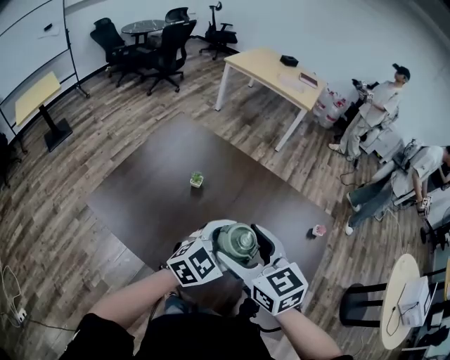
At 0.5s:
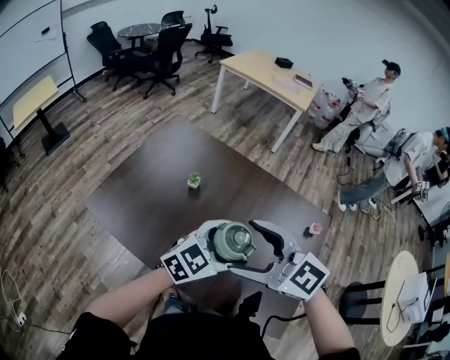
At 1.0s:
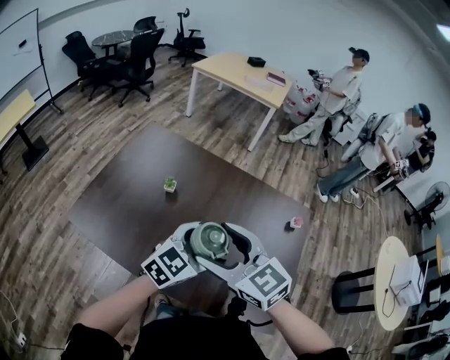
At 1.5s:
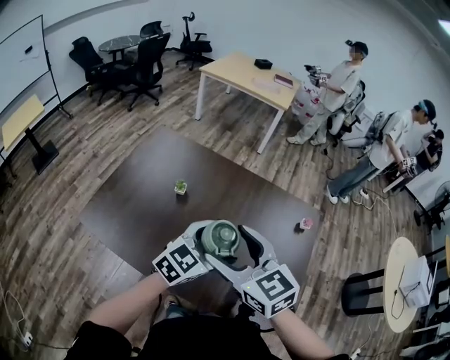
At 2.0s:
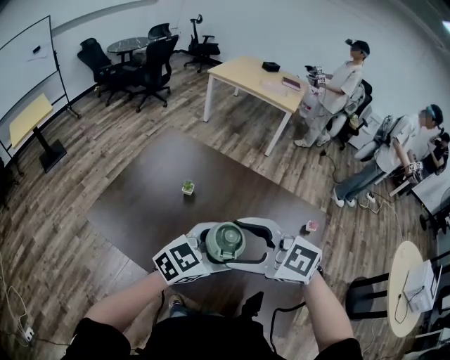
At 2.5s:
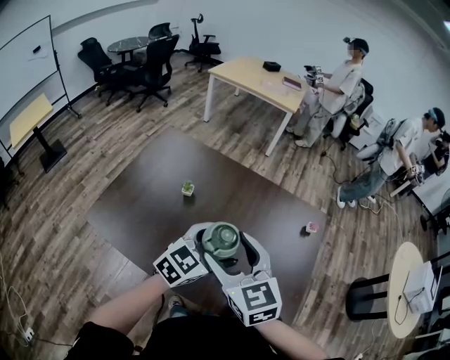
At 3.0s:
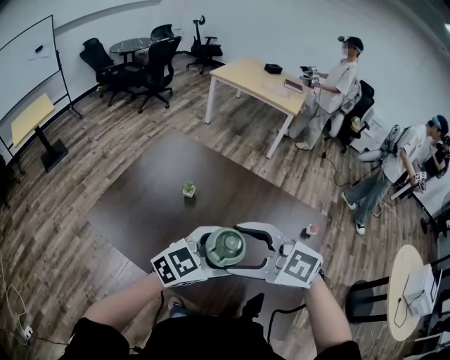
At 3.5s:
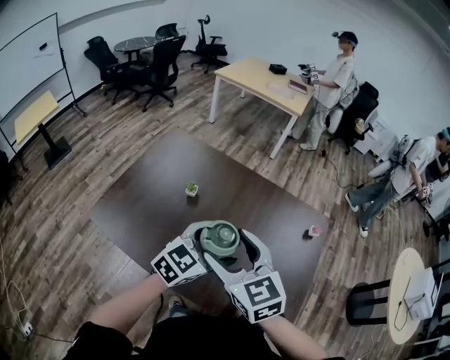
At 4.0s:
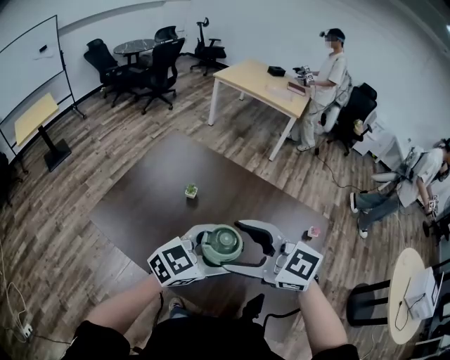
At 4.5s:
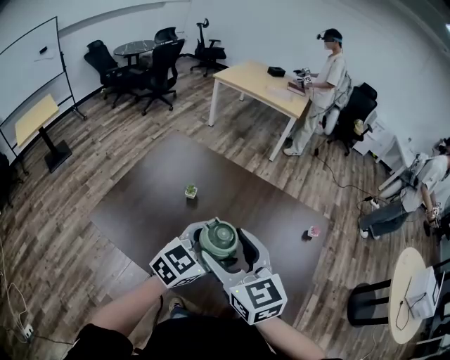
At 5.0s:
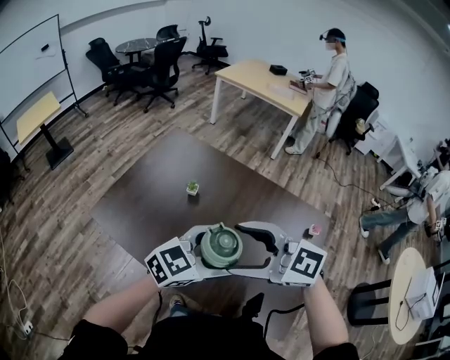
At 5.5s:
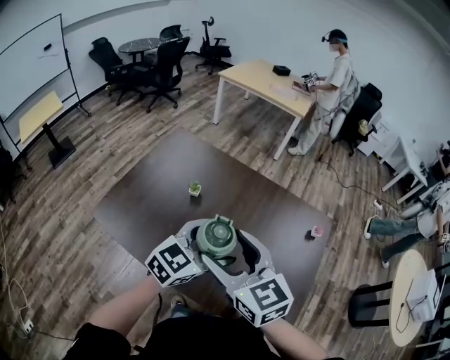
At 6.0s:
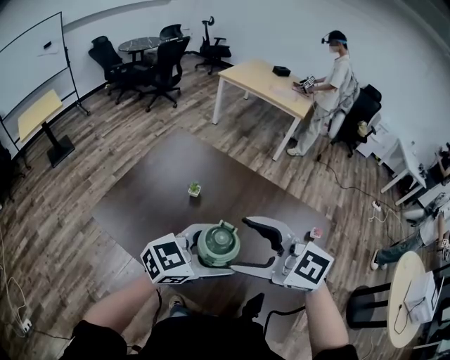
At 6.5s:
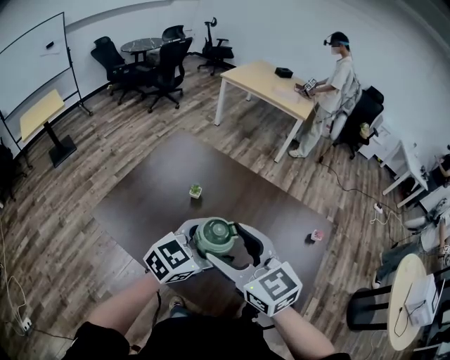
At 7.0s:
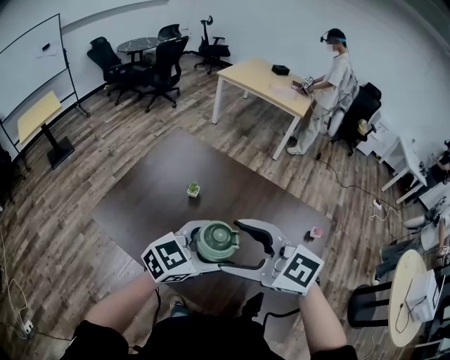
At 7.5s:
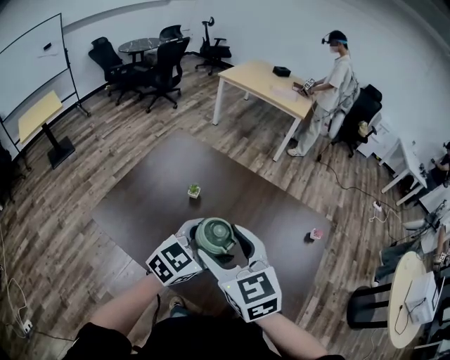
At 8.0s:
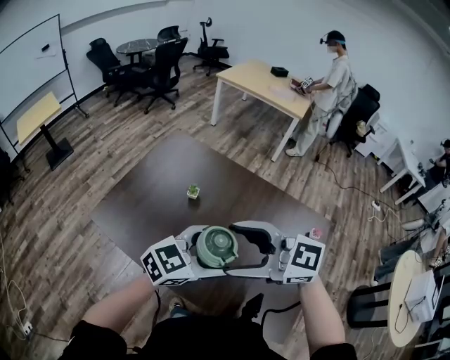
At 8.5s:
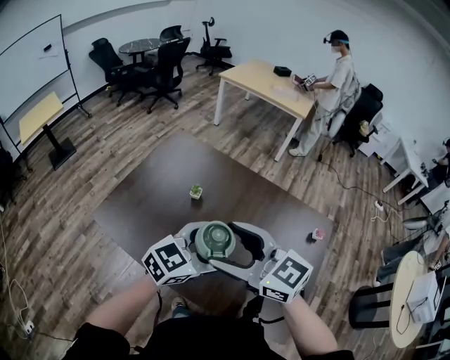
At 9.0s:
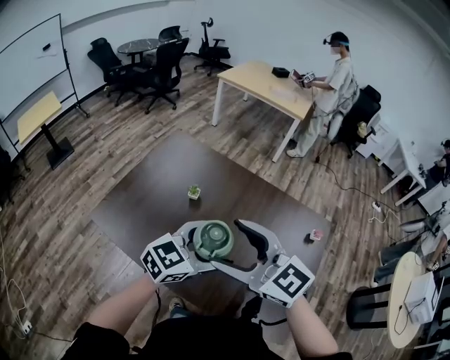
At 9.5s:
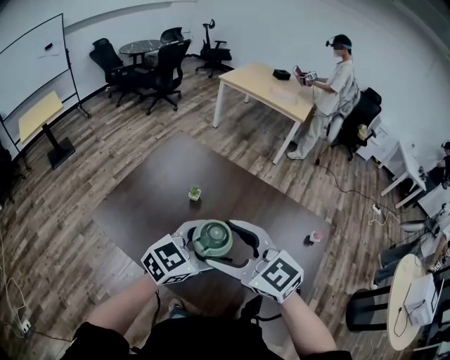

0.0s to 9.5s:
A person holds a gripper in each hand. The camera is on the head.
0.0s to 2.0s: The right gripper changes place by roughly 5 cm, and rotates approximately 40 degrees. The left gripper ends up approximately 5 cm from where it was.
4.0s to 5.5s: The right gripper changes its angle by approximately 30 degrees.
7.5s to 9.5s: The right gripper rotates some 30 degrees.

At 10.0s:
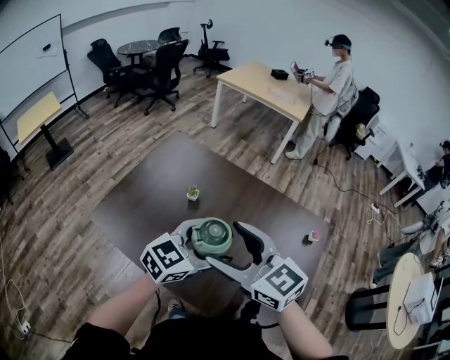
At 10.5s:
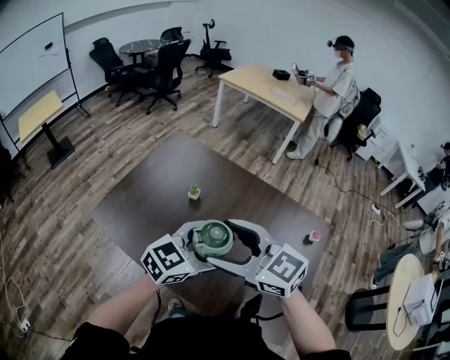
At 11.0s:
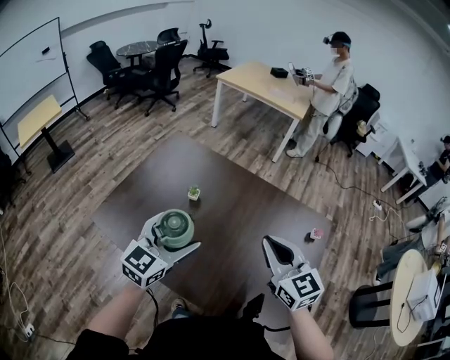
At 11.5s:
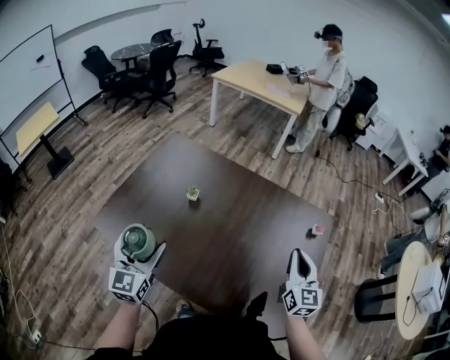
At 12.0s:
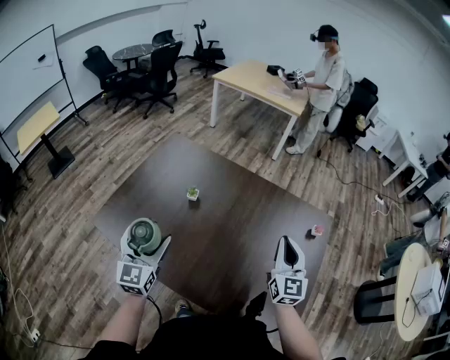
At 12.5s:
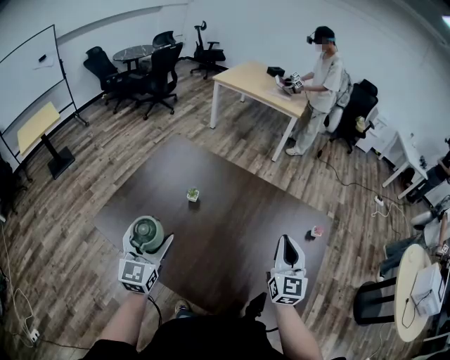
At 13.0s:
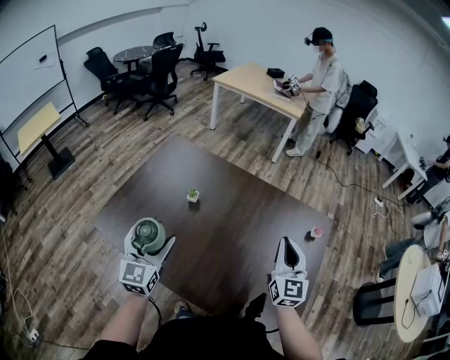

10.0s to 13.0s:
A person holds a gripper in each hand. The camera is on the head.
10.0s to 11.5s: The right gripper travels to the right and downward by roughly 30 cm, rotates some 50 degrees, and closes up, while the left gripper moves to the left, some 20 cm, and changes its angle by approximately 50 degrees.
11.5s to 13.0s: The right gripper ends up roughly 5 cm from where it was.

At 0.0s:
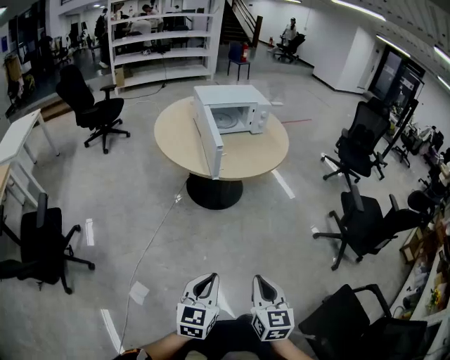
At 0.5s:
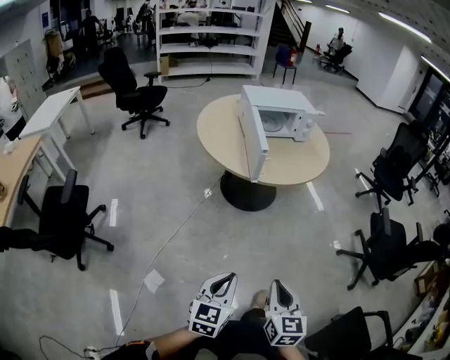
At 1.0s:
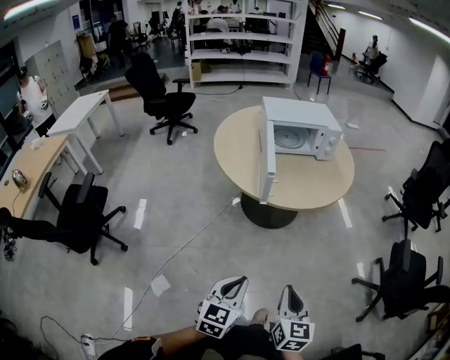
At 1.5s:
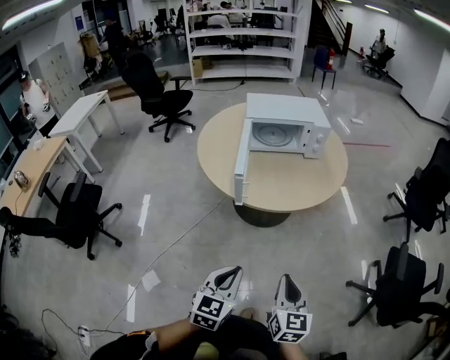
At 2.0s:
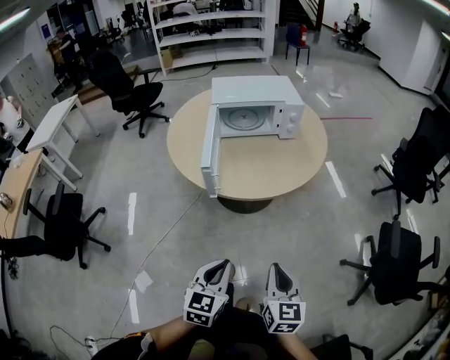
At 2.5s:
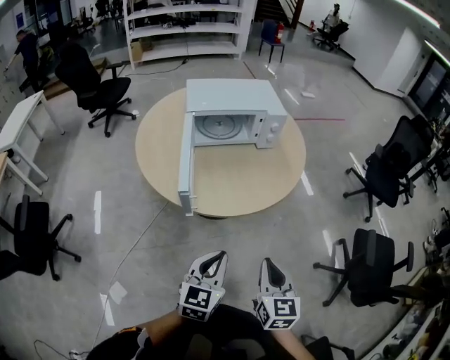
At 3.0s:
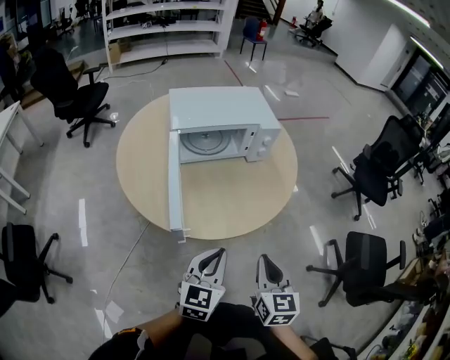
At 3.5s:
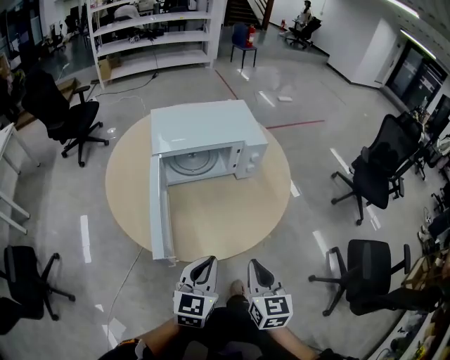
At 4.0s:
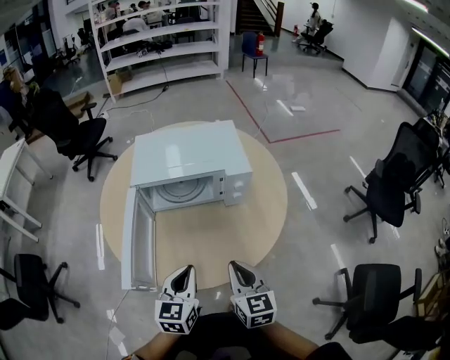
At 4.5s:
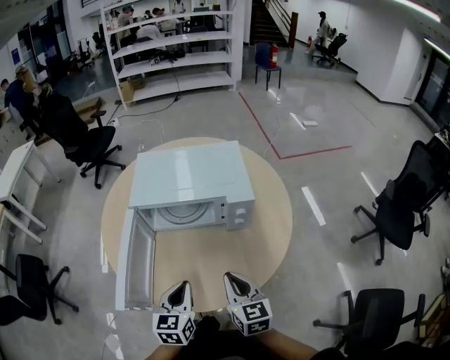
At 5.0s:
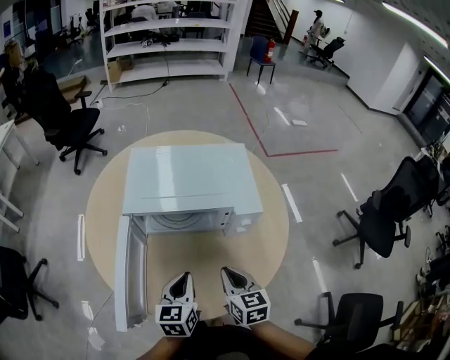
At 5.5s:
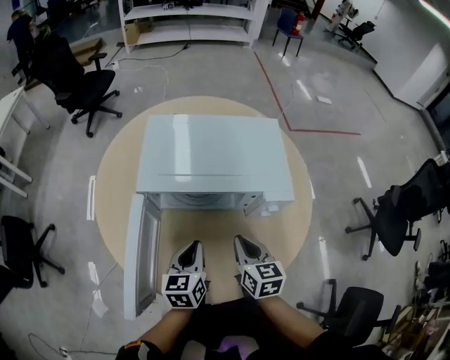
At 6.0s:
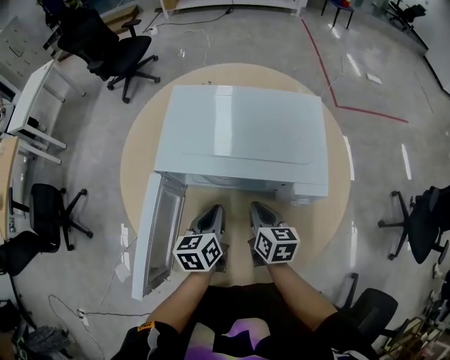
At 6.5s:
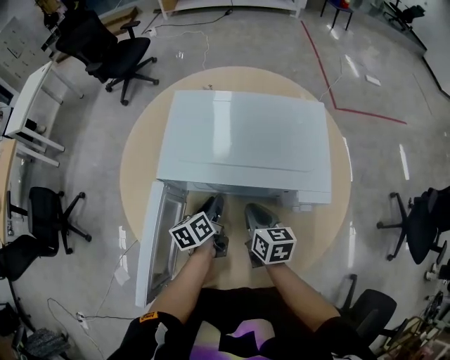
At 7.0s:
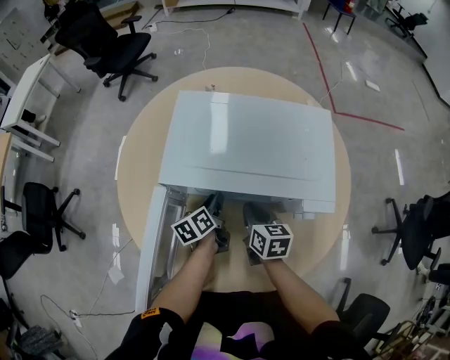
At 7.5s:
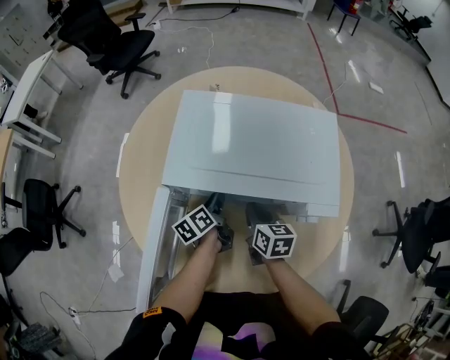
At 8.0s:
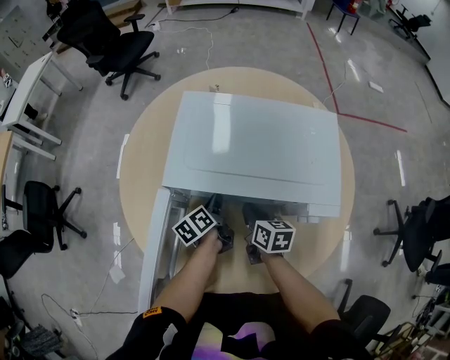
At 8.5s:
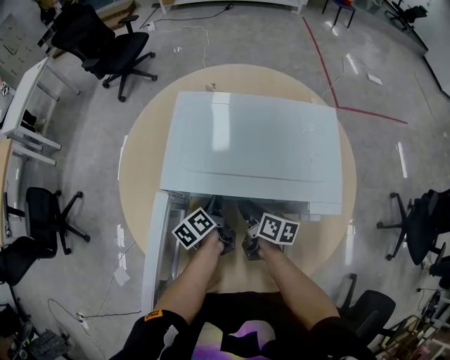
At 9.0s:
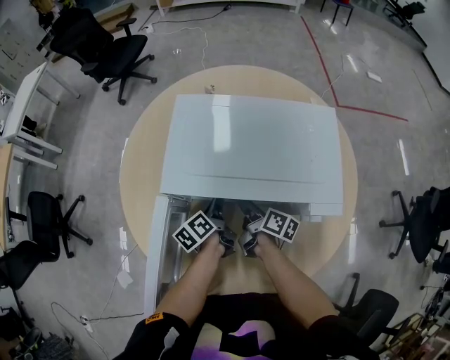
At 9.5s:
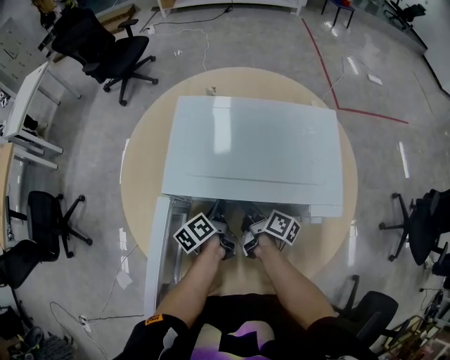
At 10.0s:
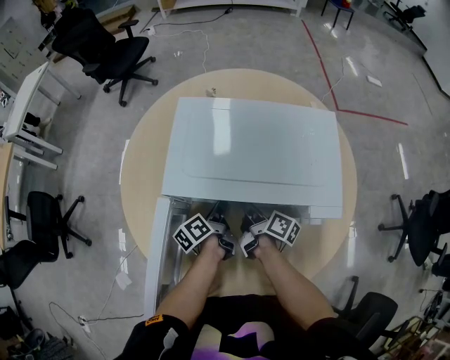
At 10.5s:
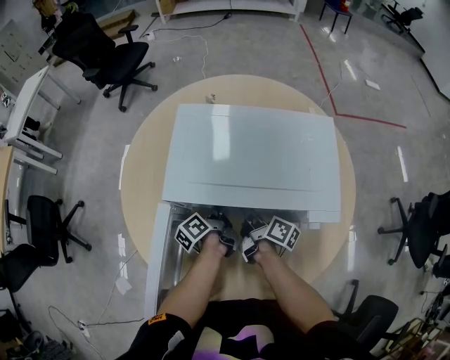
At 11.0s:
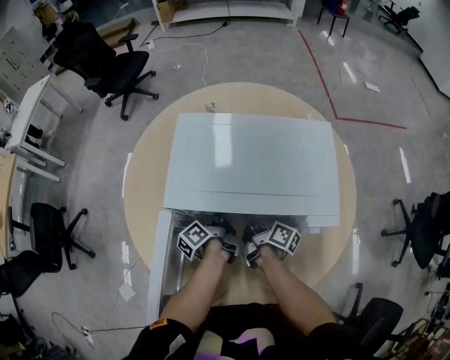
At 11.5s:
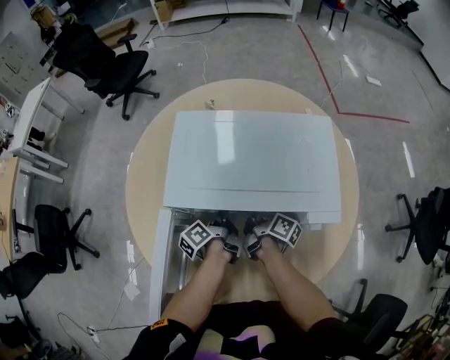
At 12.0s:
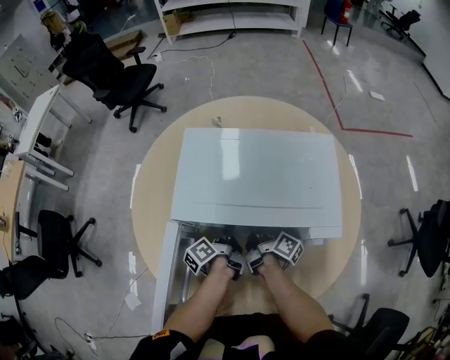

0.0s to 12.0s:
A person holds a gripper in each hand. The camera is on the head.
0.0s to 2.0s: Both grippers move forward and to the right, about 35 cm.
2.0s to 4.0s: The pair of grippers is taken forward, roughly 40 cm.
4.0s to 6.0s: The grippers both shift forward and downward by some 35 cm. The right gripper turns by roughly 30 degrees. Meanwhile the left gripper turns by approximately 30 degrees.
6.0s to 8.0s: The left gripper moves forward and downward, approximately 15 cm, and swivels some 30 degrees, while the right gripper moves forward and downward, some 5 cm.
8.0s to 10.0s: The right gripper rolls clockwise, seen from behind, by about 40 degrees.
10.0s to 12.0s: The grippers stay close to where they were, moving slightly.

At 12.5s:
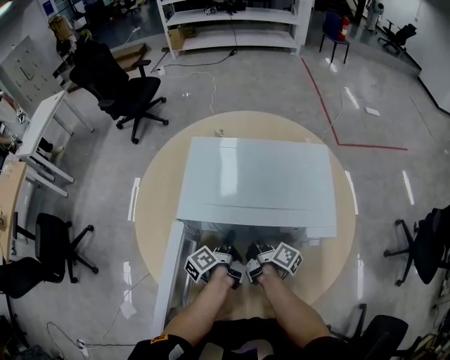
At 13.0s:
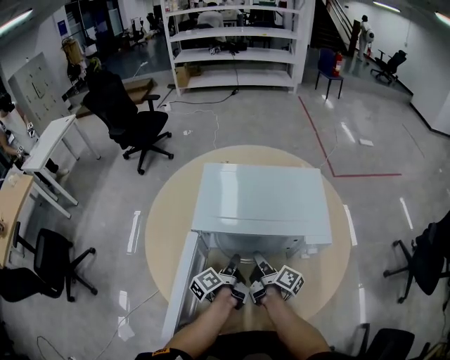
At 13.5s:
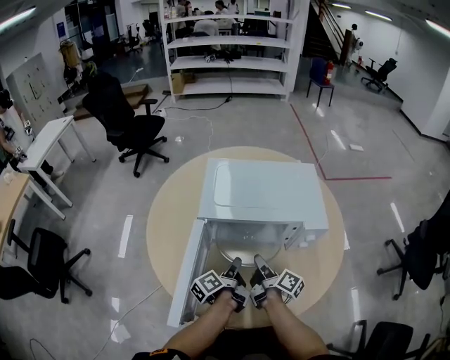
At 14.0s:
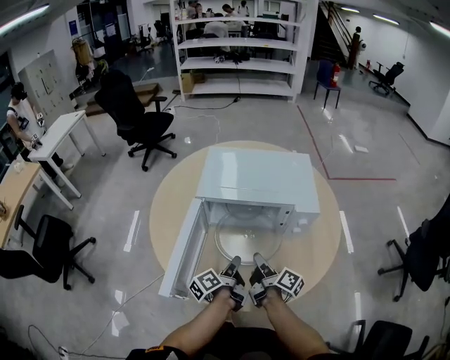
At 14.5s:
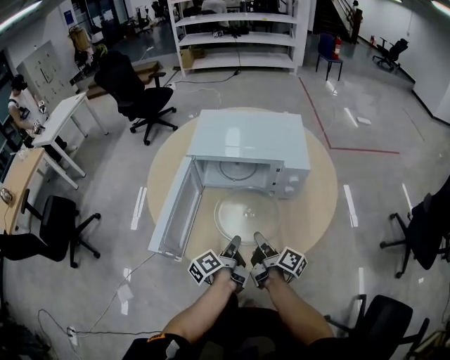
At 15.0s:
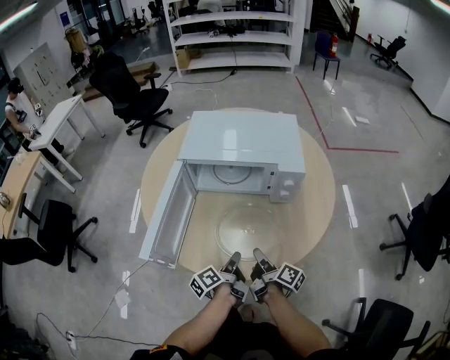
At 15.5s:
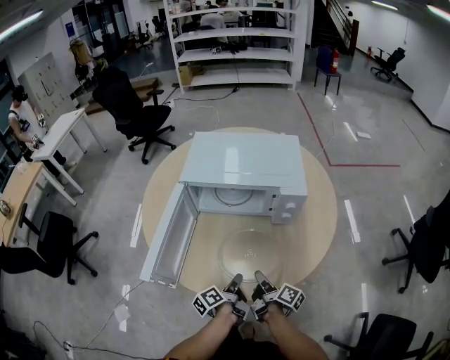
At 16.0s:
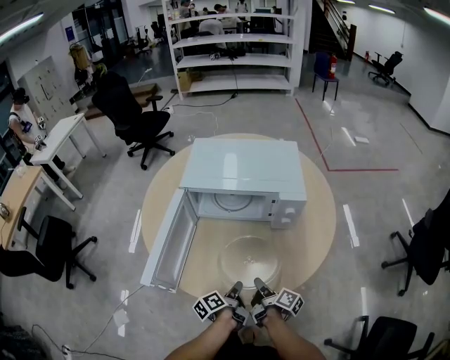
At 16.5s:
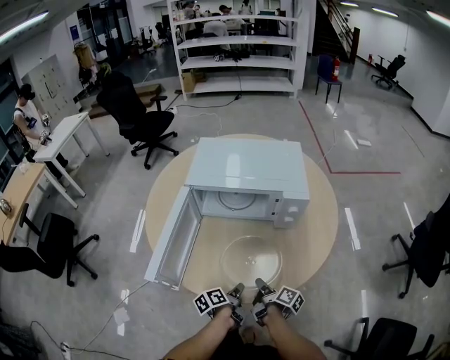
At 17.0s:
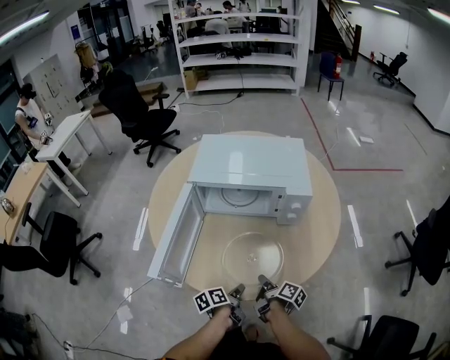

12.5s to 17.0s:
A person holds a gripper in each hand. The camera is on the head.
12.5s to 14.5s: Both grippers travel together backward, about 30 cm.
14.5s to 17.0s: The left gripper moves downward and backward, about 15 cm, and swivels roughly 30 degrees. Meanwhile the right gripper moves downward, roughly 10 cm.
